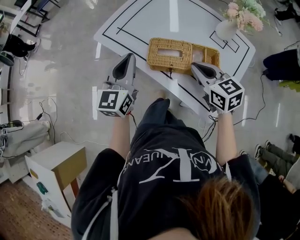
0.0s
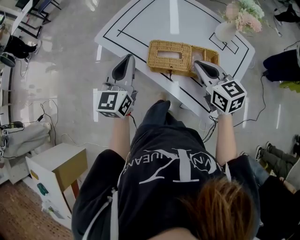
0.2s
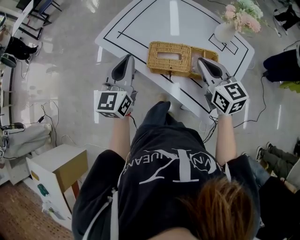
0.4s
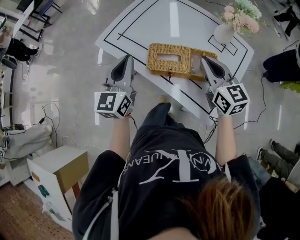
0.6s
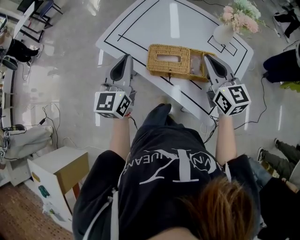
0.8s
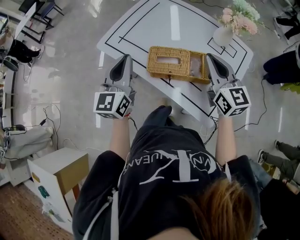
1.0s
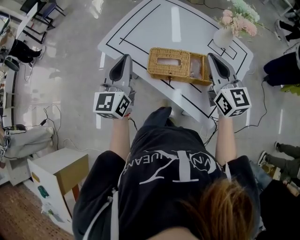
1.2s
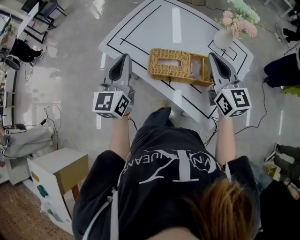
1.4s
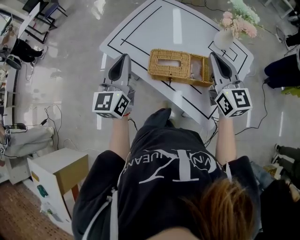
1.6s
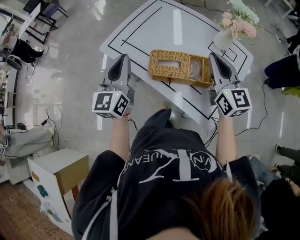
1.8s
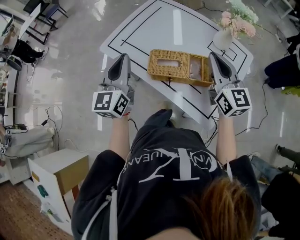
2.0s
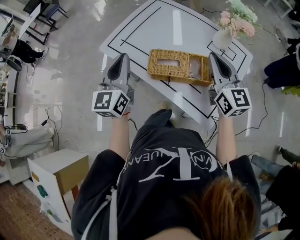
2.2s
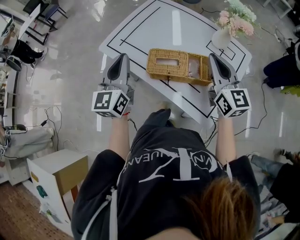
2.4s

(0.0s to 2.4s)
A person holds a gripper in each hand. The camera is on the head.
0.0s - 1.2s: The right gripper heads upward and to the right, covering roughly 10 cm, and rotates about 30 degrees.
1.2s - 2.4s: The grippers stay close to where they were, moving slightly.

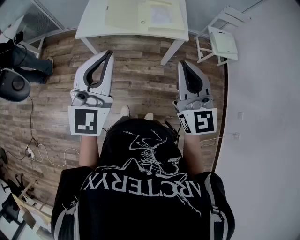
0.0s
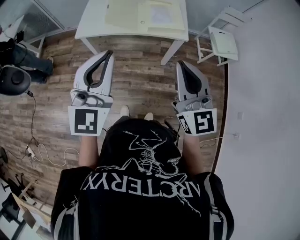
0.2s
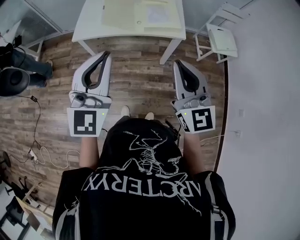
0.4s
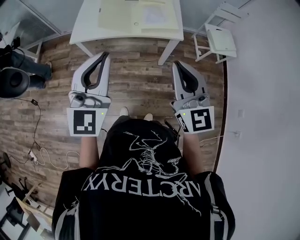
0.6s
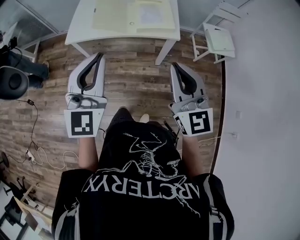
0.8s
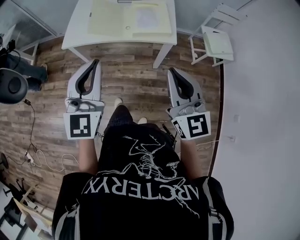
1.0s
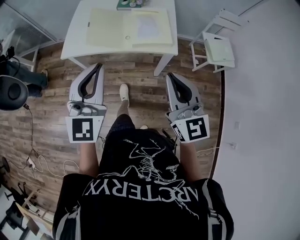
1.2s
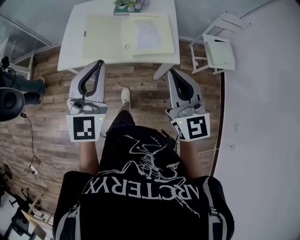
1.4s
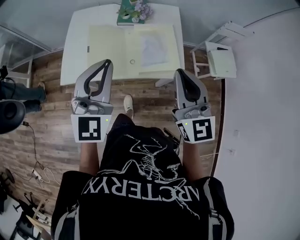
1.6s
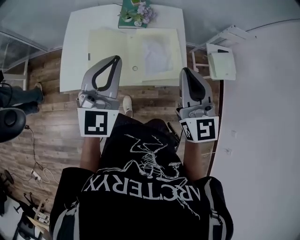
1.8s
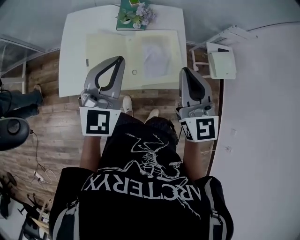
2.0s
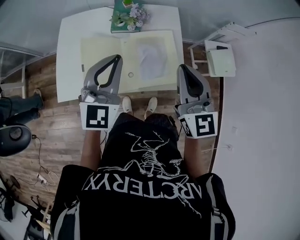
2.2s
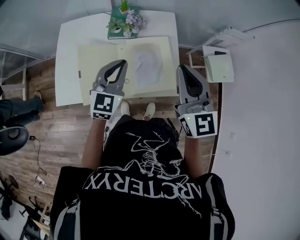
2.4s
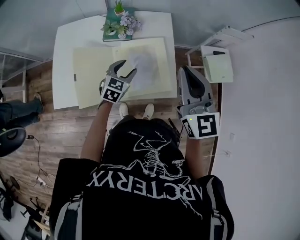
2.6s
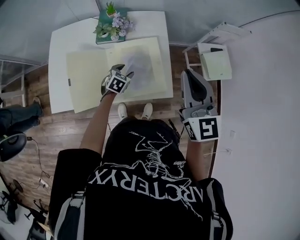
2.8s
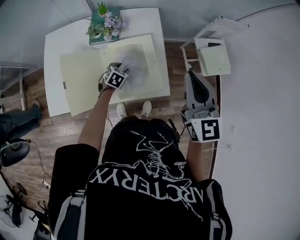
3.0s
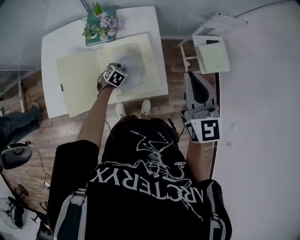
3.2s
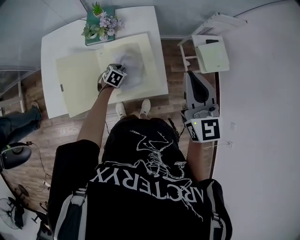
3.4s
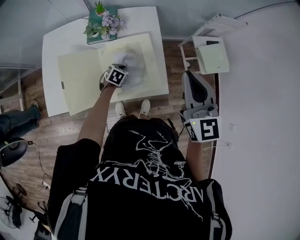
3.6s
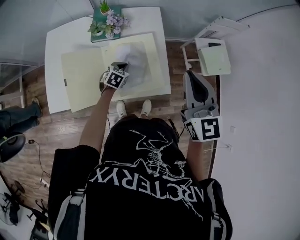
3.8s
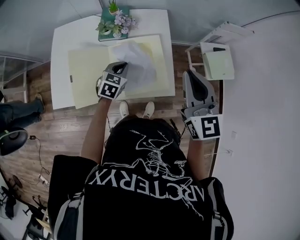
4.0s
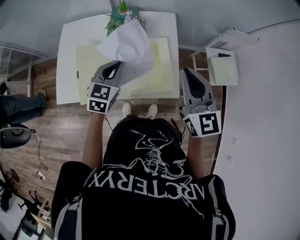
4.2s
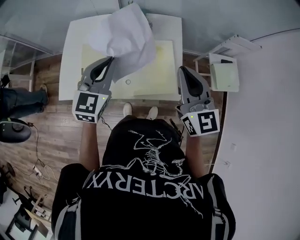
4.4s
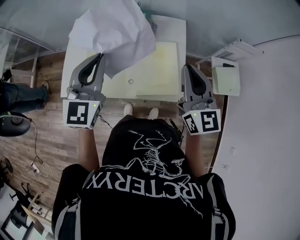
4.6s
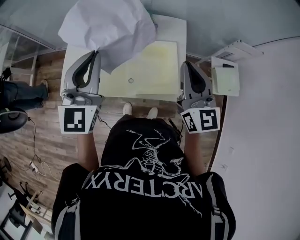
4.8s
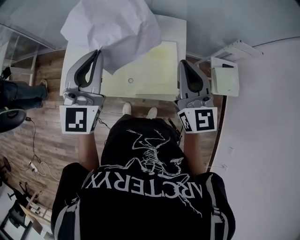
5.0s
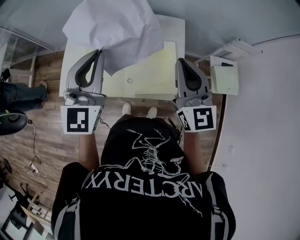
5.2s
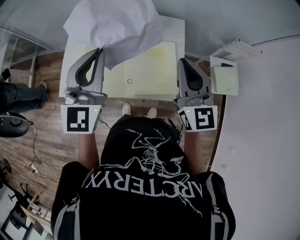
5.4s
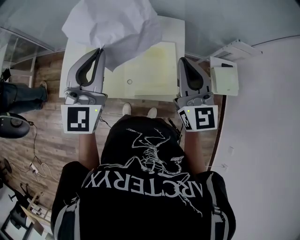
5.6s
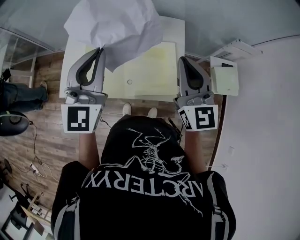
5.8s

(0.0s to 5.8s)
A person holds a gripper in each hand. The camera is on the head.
0.0s - 1.4s: The two grippers go about 20 cm forward.
1.4s - 2.8s: The right gripper travels forward by about 25 cm, while the left gripper goes roughly 50 cm downward and forward, tips its fingers downward by roughly 50 degrees, and opens up.
2.8s - 4.4s: The left gripper is displaced upward by some 30 cm, tips its fingers upward by about 40 degrees, and closes up; the right gripper moves some 5 cm.
4.4s - 5.8s: The left gripper goes some 10 cm upward.

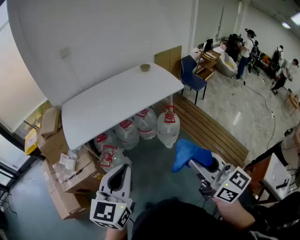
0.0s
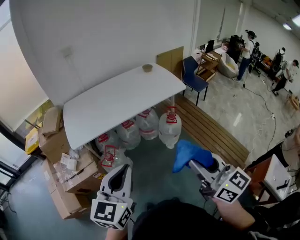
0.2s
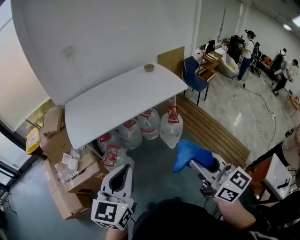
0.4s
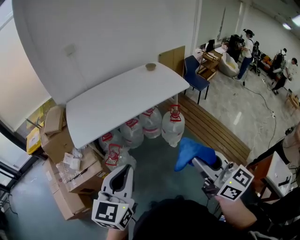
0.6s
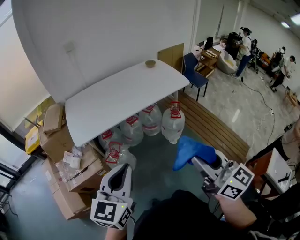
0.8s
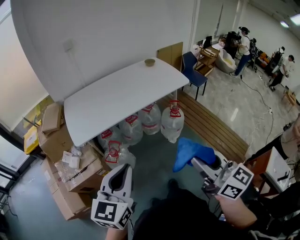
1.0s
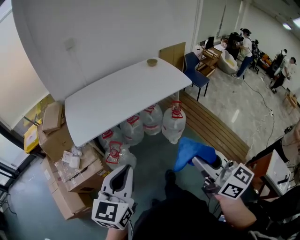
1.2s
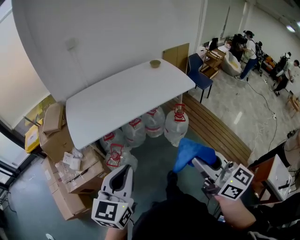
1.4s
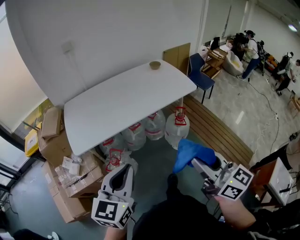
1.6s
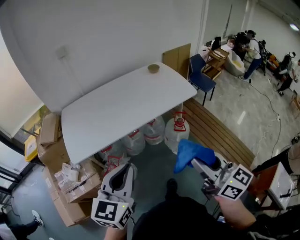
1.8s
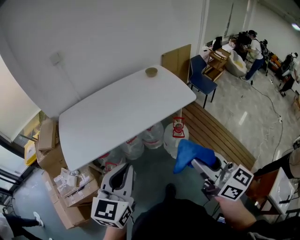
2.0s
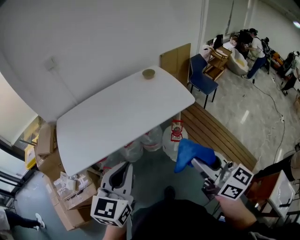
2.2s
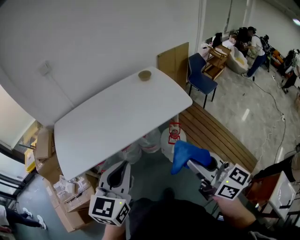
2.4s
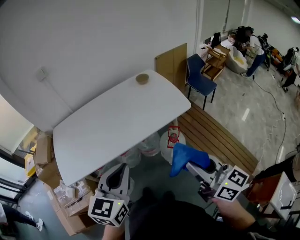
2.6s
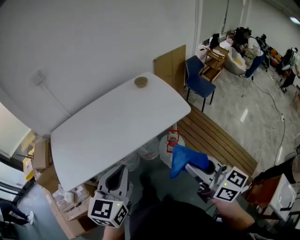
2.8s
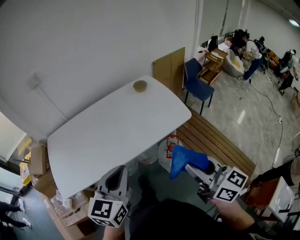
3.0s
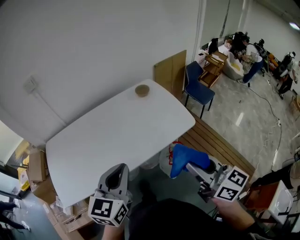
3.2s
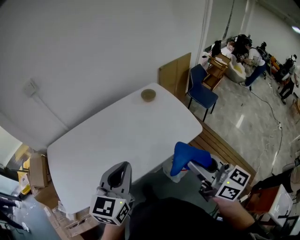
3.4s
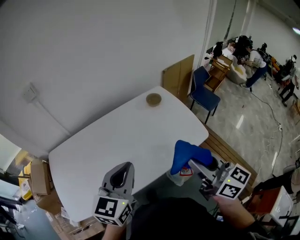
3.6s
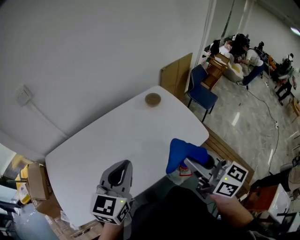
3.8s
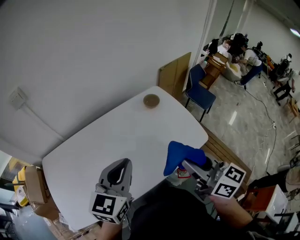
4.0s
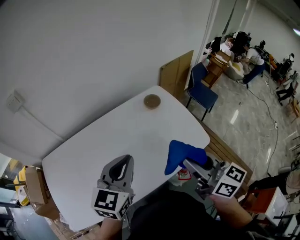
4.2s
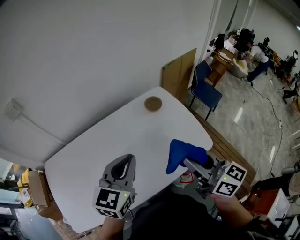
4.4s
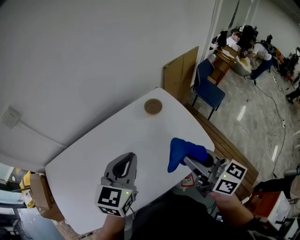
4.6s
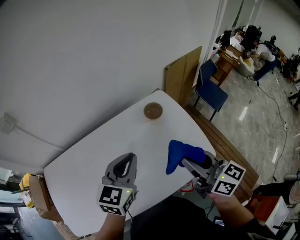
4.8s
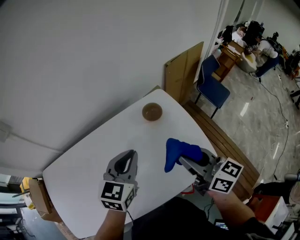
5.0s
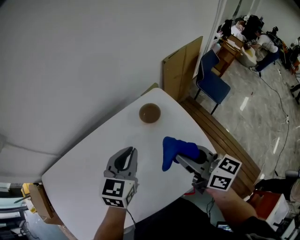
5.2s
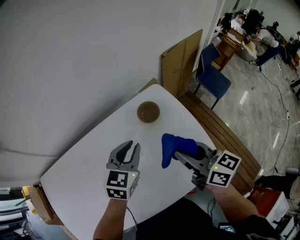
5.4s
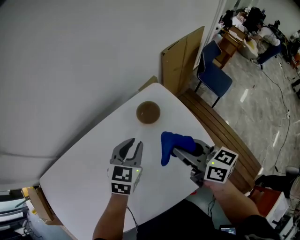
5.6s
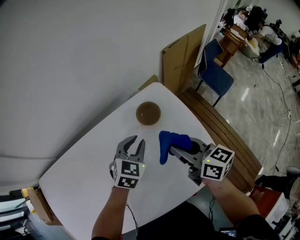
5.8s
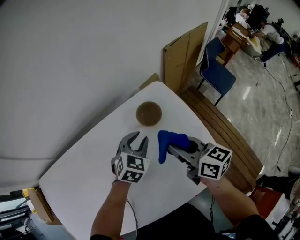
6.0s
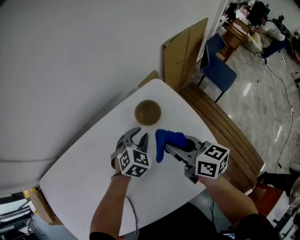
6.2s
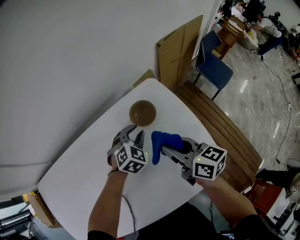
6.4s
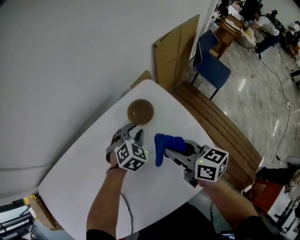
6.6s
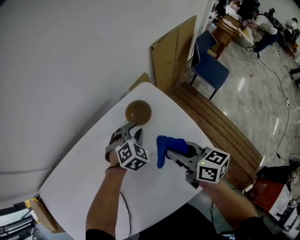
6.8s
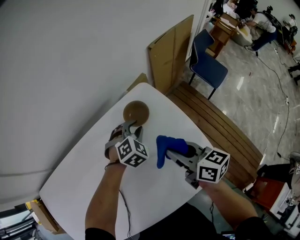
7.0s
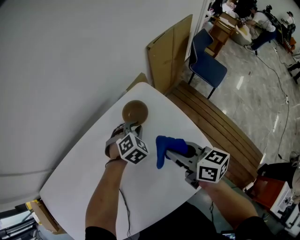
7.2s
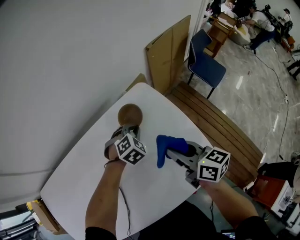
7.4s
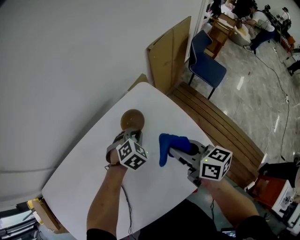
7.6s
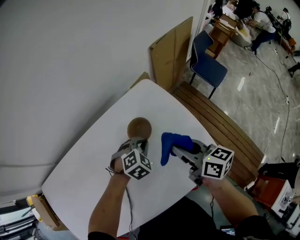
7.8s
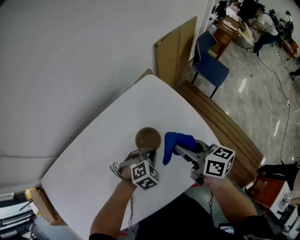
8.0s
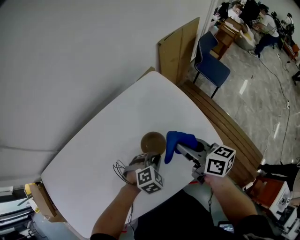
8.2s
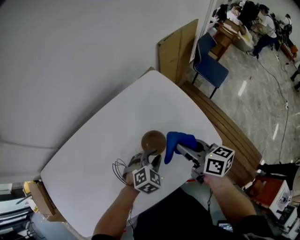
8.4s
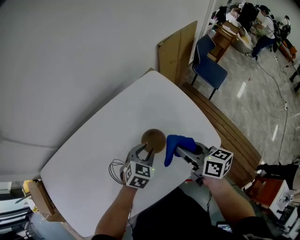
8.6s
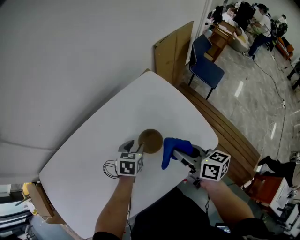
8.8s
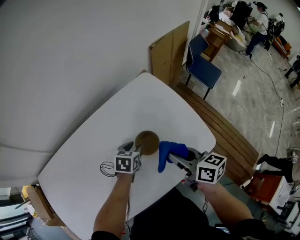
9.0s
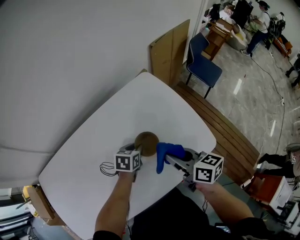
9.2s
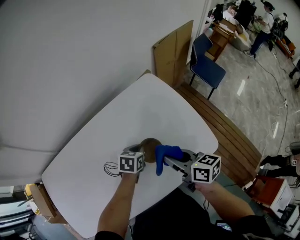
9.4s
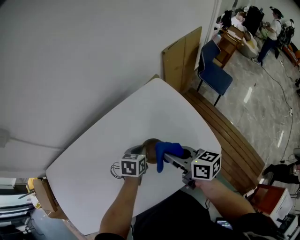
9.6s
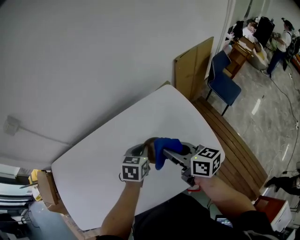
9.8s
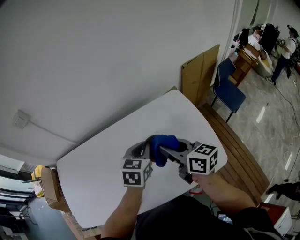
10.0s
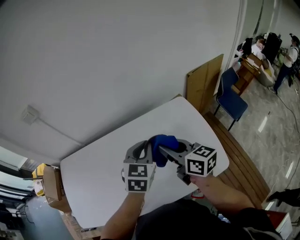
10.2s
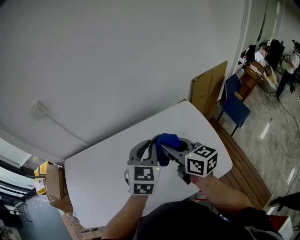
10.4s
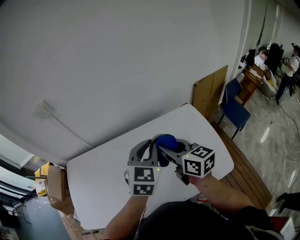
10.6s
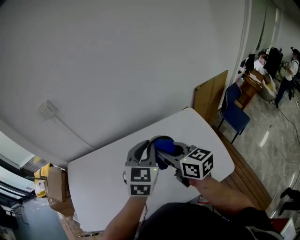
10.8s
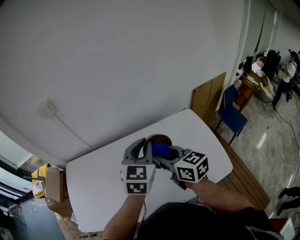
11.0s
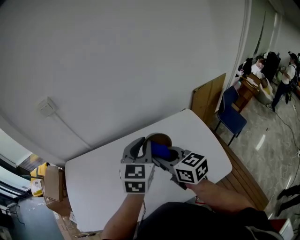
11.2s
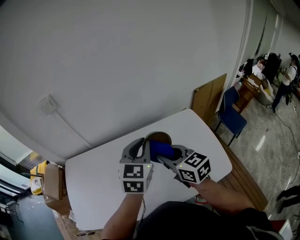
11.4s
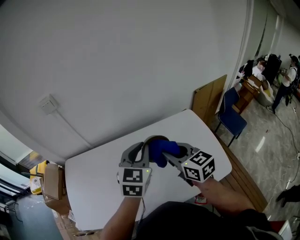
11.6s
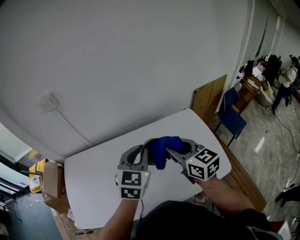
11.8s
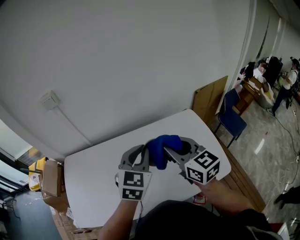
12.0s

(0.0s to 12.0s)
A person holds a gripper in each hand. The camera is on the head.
0.0s - 1.6s: Both grippers move forward and to the left, roughly 10 cm.
1.6s - 3.0s: The grippers both shift forward and to the right by approximately 30 cm.
3.0s - 4.4s: The two grippers go roughly 30 cm forward.
4.4s - 6.0s: The right gripper is displaced forward and downward by some 30 cm. The left gripper heads forward, downward and to the right, covering roughly 40 cm, changes its angle by about 30 degrees, and opens.
6.0s - 7.6s: The left gripper turns by approximately 30 degrees, and closes up. Meanwhile the right gripper moves some 5 cm.
7.6s - 9.0s: The right gripper shifts some 10 cm backward; the left gripper shifts some 15 cm backward and to the left, twists approximately 50 degrees counterclockwise, seen from behind, and opens.
9.0s - 10.4s: The right gripper shifts about 20 cm upward, to the left and forward, and turns by some 20 degrees. Meanwhile the left gripper goes approximately 30 cm upward, changes its angle by some 40 degrees, and closes up.
10.4s - 12.0s: The right gripper goes approximately 10 cm to the left and upward, and changes its angle by approximately 20 degrees. Meanwhile the left gripper goes roughly 10 cm to the left.

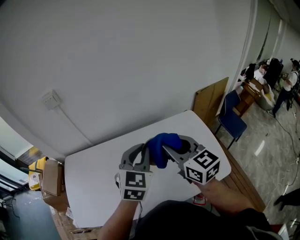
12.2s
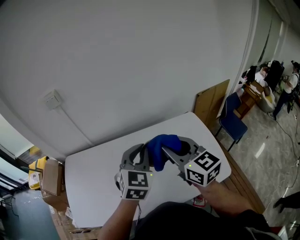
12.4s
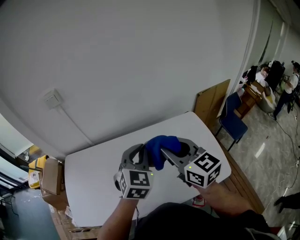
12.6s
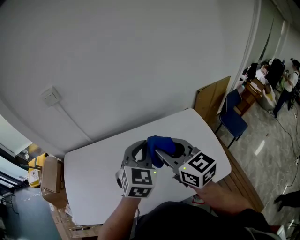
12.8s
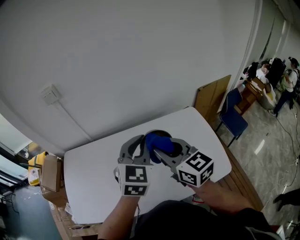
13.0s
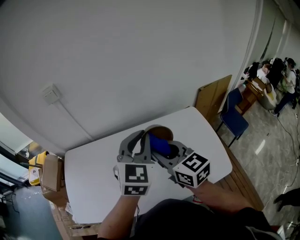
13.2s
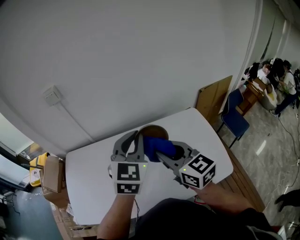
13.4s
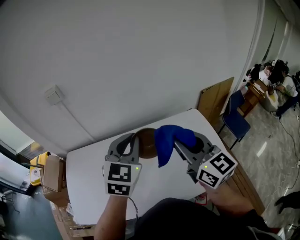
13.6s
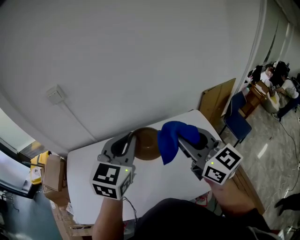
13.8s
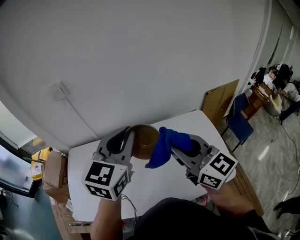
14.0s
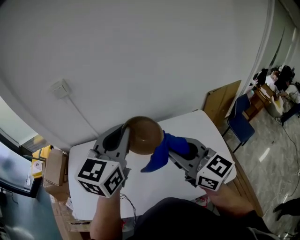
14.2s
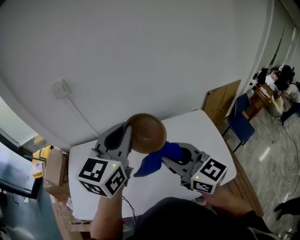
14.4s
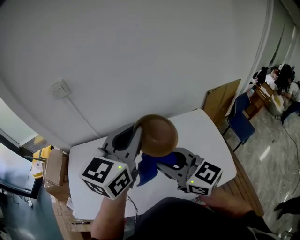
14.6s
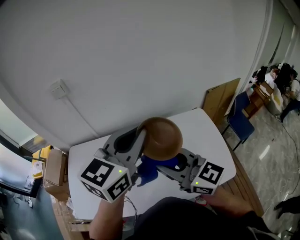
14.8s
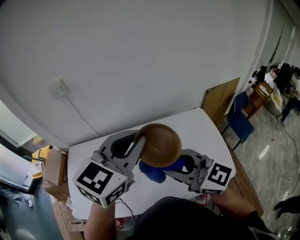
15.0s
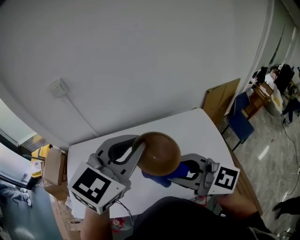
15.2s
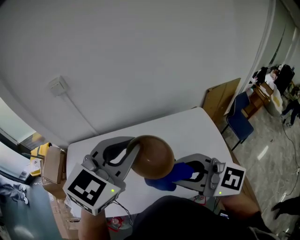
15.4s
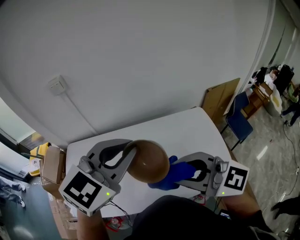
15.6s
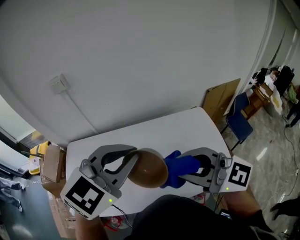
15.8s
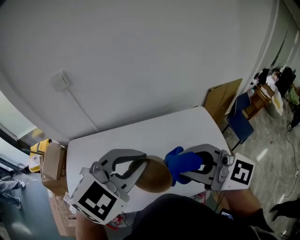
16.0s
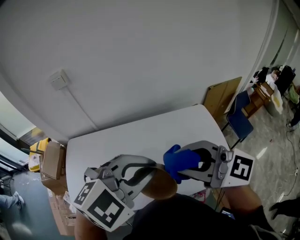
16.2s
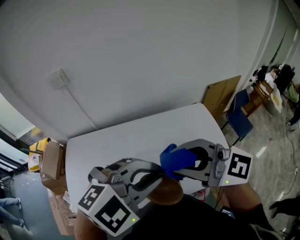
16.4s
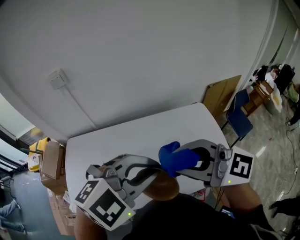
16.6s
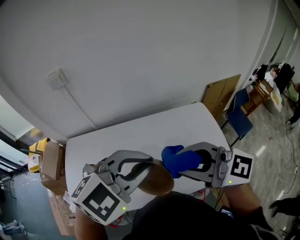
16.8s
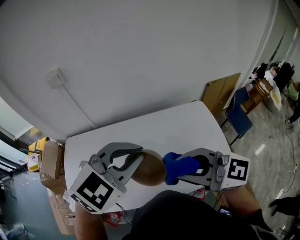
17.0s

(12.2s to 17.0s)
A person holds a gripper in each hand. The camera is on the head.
12.2s - 13.8s: Both grippers travel together upward, approximately 5 cm.
13.8s - 15.4s: The left gripper is displaced backward and upward by approximately 10 cm. Meanwhile the right gripper heads backward and to the left, covering approximately 15 cm, and rotates roughly 40 degrees.
